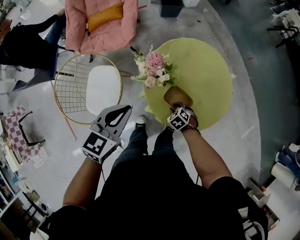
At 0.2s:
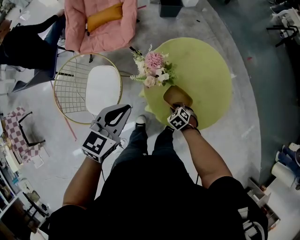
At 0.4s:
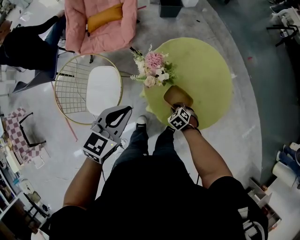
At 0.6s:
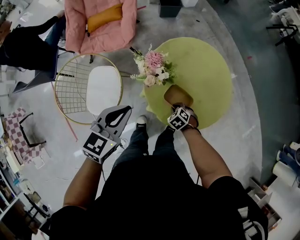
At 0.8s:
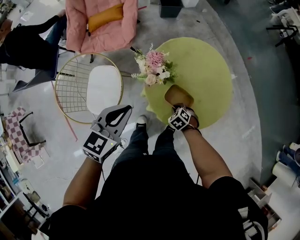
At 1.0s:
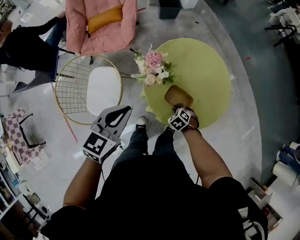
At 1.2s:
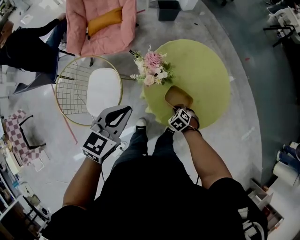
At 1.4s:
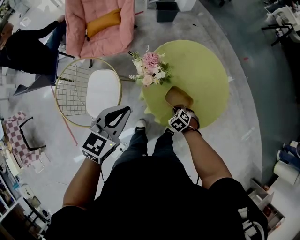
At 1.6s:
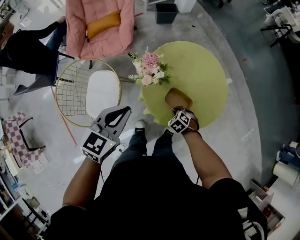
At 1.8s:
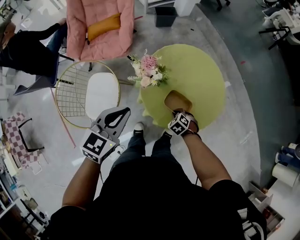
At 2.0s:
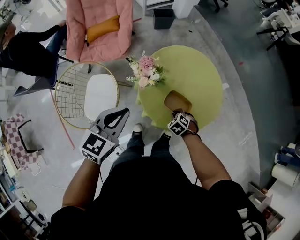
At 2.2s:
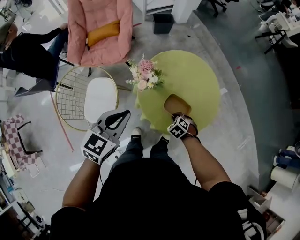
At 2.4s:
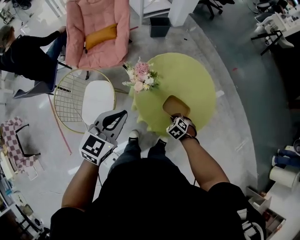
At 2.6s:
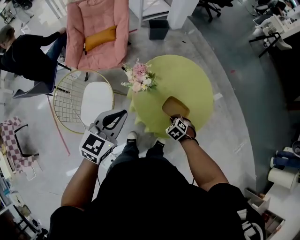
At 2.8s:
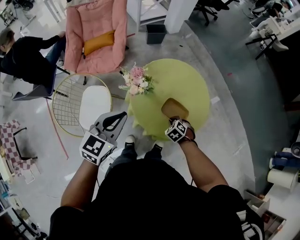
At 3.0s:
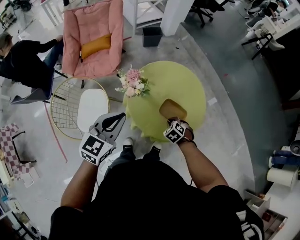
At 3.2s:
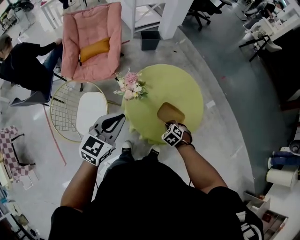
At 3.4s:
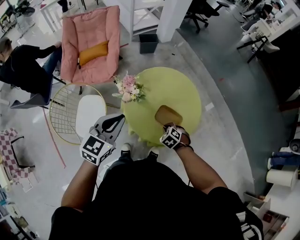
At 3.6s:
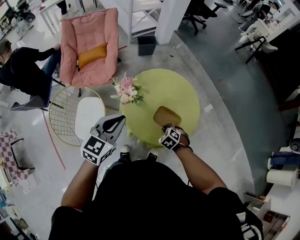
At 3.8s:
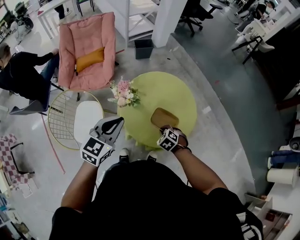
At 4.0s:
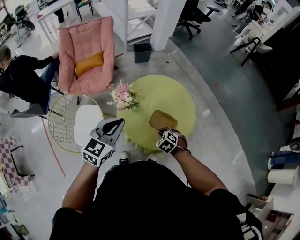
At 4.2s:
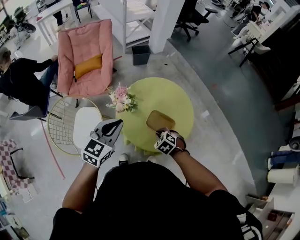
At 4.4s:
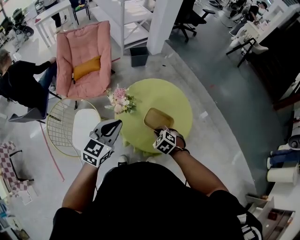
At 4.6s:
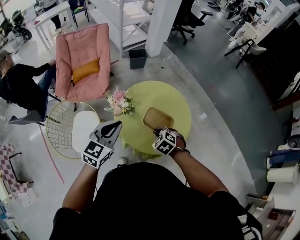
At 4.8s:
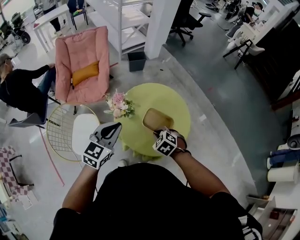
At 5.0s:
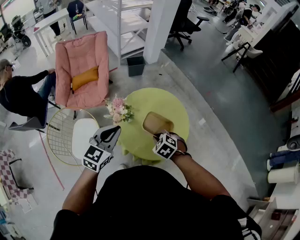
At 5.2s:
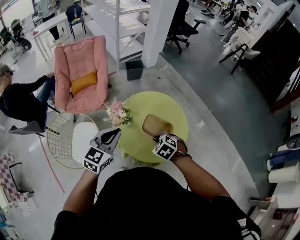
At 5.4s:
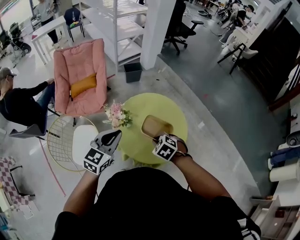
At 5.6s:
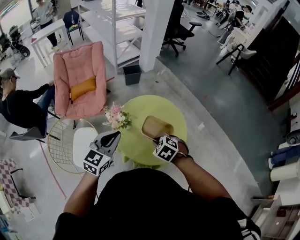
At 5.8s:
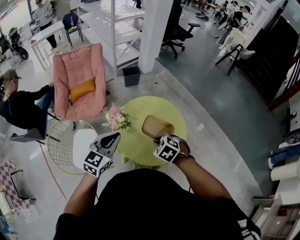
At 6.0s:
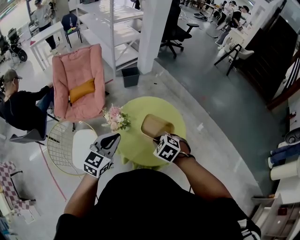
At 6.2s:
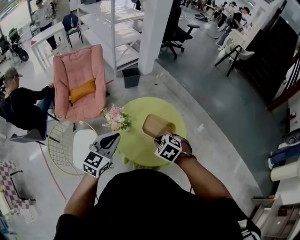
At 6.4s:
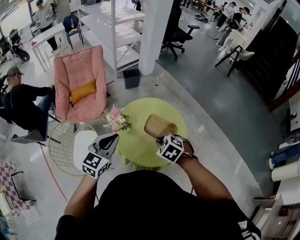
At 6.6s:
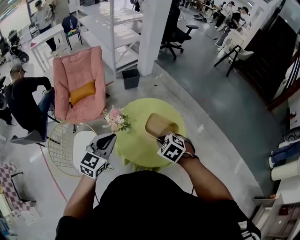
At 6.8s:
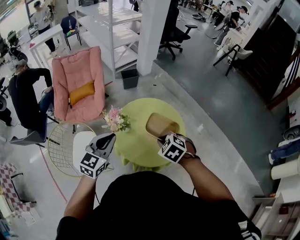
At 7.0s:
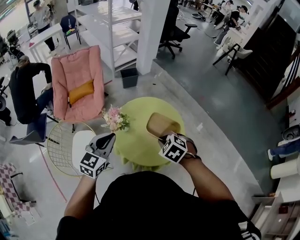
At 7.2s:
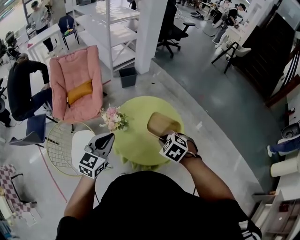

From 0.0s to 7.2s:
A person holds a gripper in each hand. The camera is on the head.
From 0.0s to 1.4s: The grippers make only small movements.
From 1.4s to 2.8s: The two grippers go some 5 cm upward.
From 2.8s to 4.4s: The left gripper shifts by approximately 5 cm. Meanwhile the right gripper is displaced upward by about 10 cm.
From 4.4s to 5.8s: The right gripper moves upward, about 10 cm.
From 5.8s to 7.2s: The right gripper shifts by roughly 5 cm.

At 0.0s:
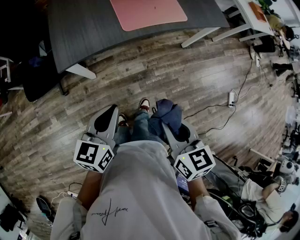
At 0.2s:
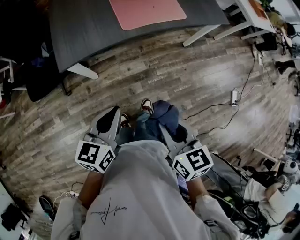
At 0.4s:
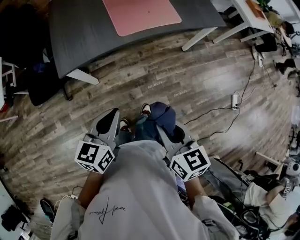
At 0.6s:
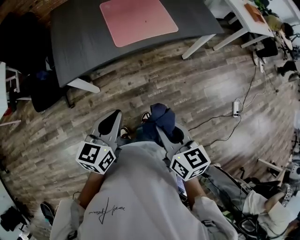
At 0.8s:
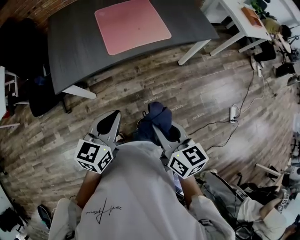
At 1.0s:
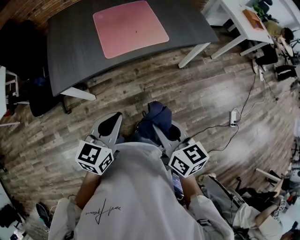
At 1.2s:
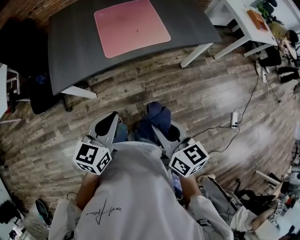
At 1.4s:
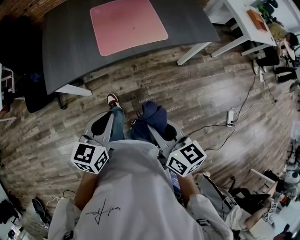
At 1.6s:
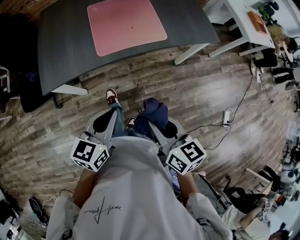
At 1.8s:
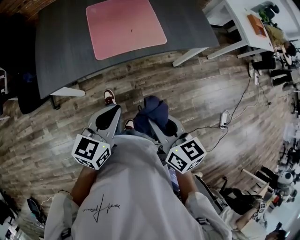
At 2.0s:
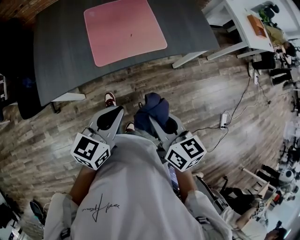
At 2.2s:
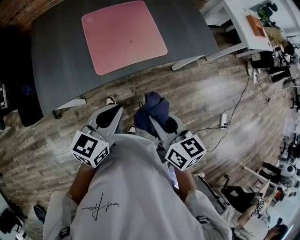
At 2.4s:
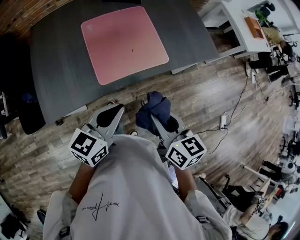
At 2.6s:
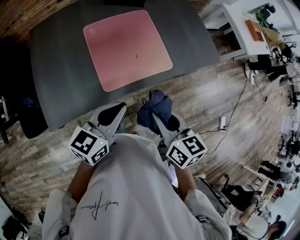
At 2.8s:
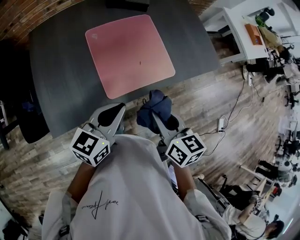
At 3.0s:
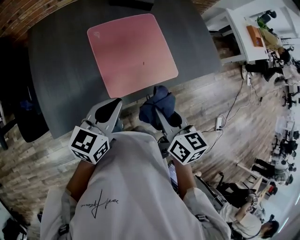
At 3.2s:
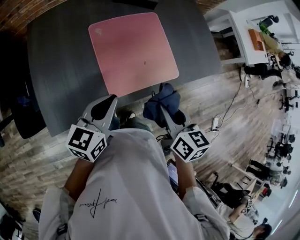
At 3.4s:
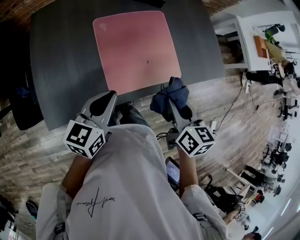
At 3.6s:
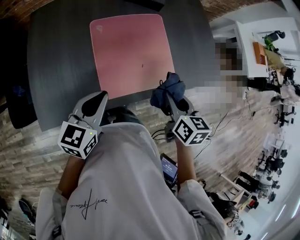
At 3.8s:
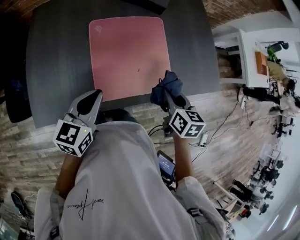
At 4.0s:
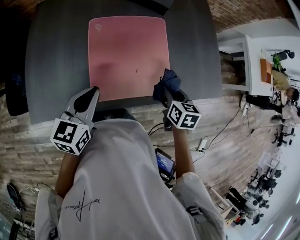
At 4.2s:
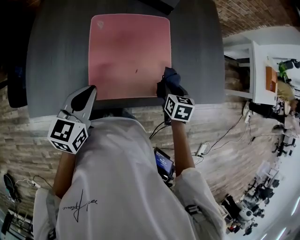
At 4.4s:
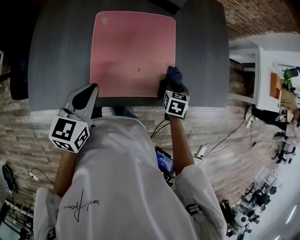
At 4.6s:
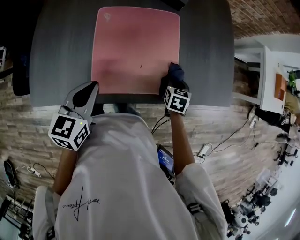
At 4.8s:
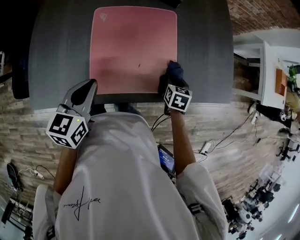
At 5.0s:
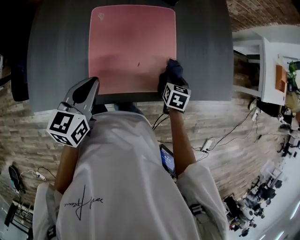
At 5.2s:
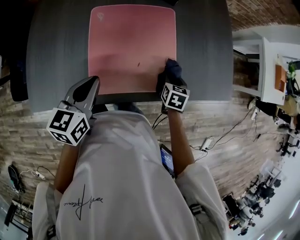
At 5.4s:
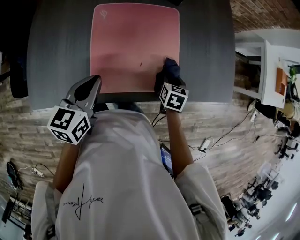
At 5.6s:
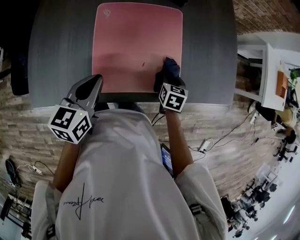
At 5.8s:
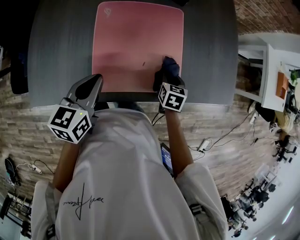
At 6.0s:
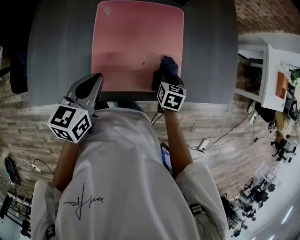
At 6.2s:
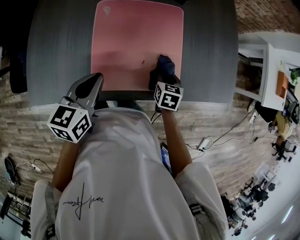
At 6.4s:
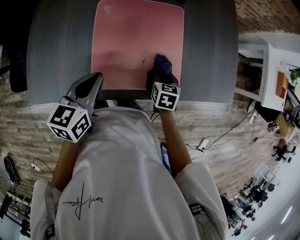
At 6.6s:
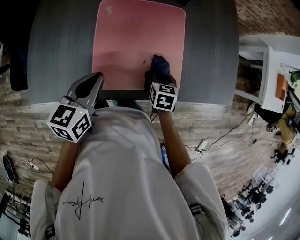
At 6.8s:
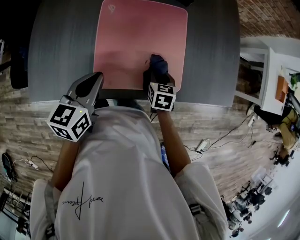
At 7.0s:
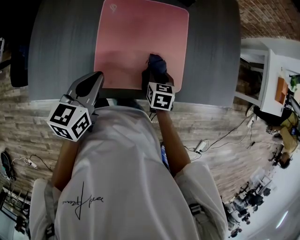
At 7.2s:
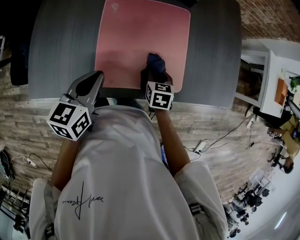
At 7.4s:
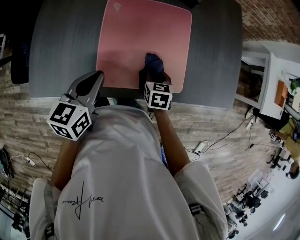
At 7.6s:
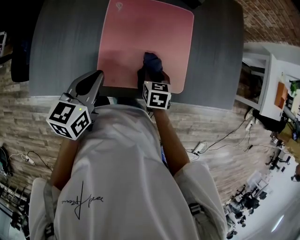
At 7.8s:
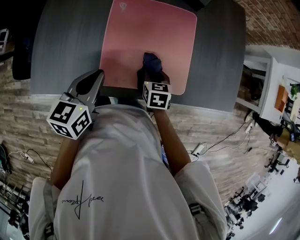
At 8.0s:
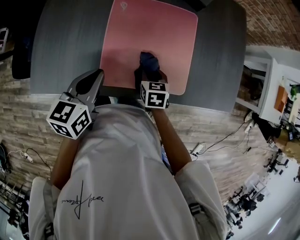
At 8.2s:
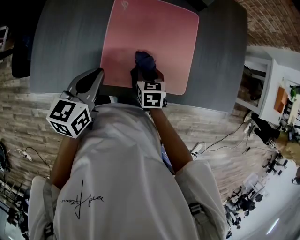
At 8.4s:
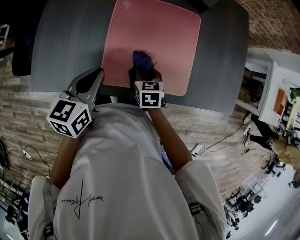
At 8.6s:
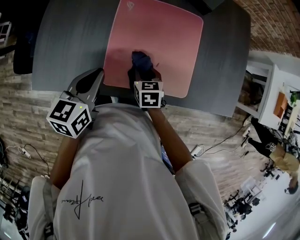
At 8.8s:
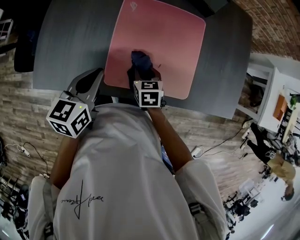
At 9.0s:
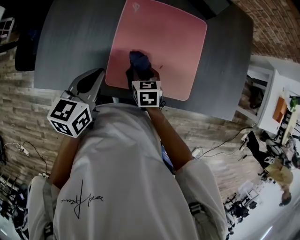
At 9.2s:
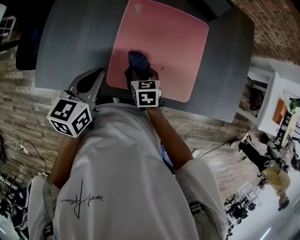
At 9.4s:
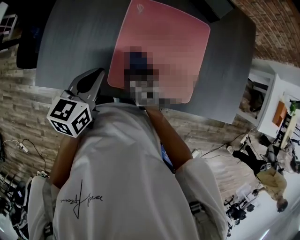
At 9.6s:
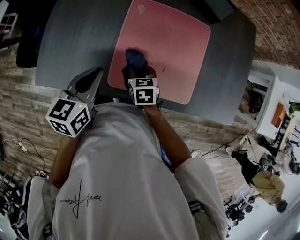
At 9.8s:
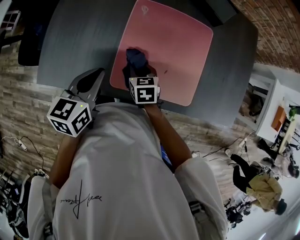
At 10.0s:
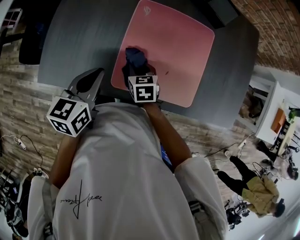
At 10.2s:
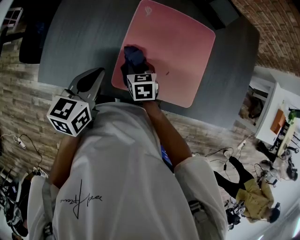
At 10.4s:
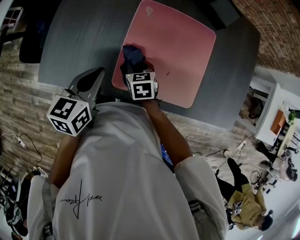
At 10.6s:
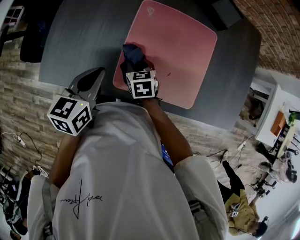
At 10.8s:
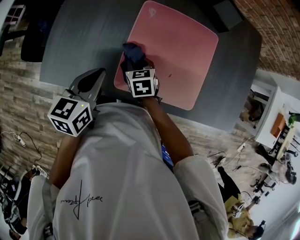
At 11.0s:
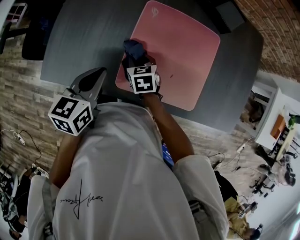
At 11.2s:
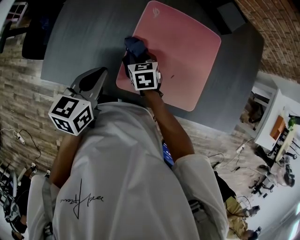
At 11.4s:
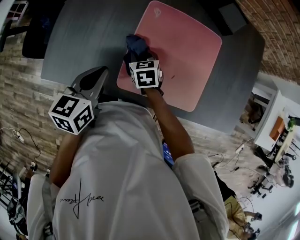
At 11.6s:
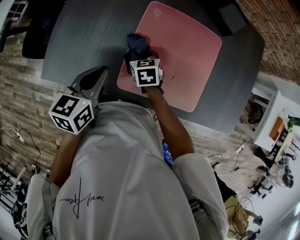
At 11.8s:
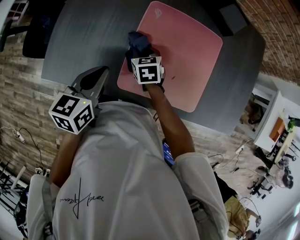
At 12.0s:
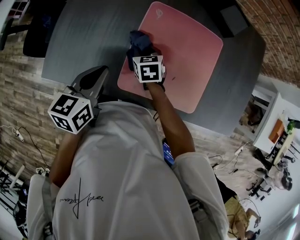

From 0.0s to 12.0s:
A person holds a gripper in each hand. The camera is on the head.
From 0.0s to 1.6s: The two grippers go approximately 20 cm to the right and forward.
From 1.6s to 3.0s: Both grippers move forward and to the left, roughly 30 cm.
From 3.0s to 4.4s: The right gripper travels downward, forward and to the right by roughly 35 cm, and changes its angle by approximately 40 degrees. Meanwhile the left gripper heads forward and downward, covering roughly 10 cm, and swivels approximately 30 degrees.
From 4.4s to 6.0s: The right gripper is displaced to the left by roughly 5 cm.
From 6.0s to 7.6s: The right gripper moves to the left, roughly 10 cm.
From 7.6s to 9.0s: The right gripper travels to the left by approximately 10 cm.
From 9.0s to 10.4s: The right gripper travels to the left by about 5 cm.
From 10.4s to 12.0s: The right gripper goes approximately 5 cm forward.

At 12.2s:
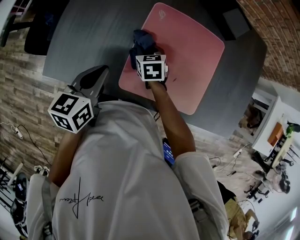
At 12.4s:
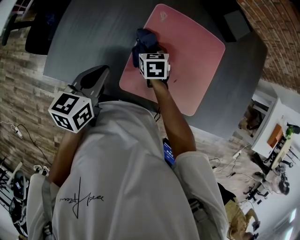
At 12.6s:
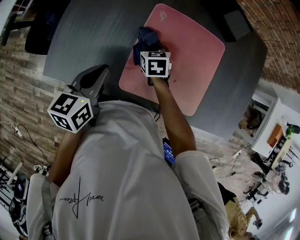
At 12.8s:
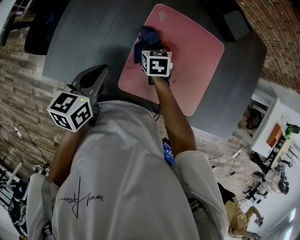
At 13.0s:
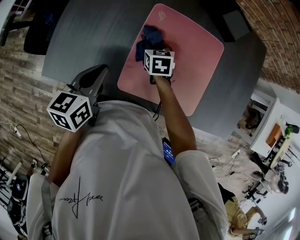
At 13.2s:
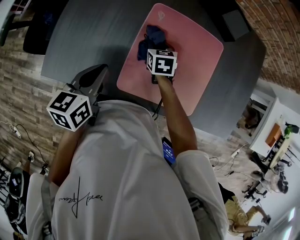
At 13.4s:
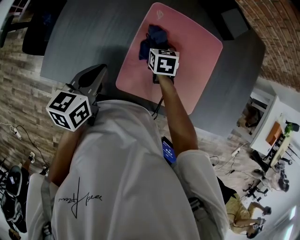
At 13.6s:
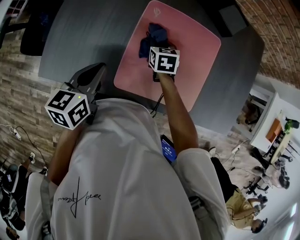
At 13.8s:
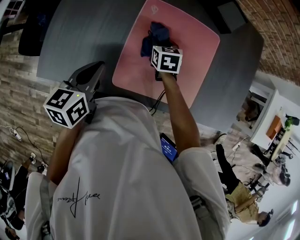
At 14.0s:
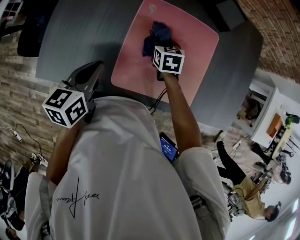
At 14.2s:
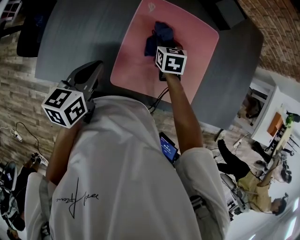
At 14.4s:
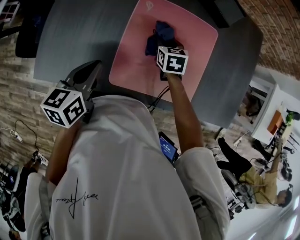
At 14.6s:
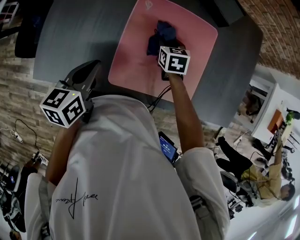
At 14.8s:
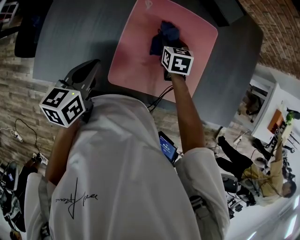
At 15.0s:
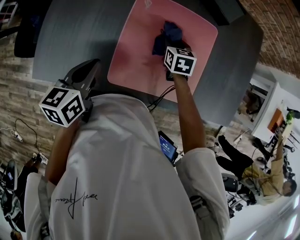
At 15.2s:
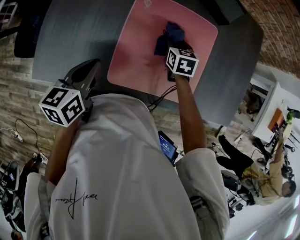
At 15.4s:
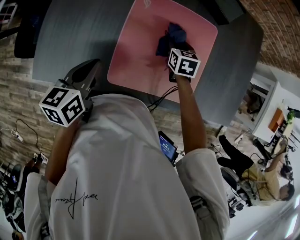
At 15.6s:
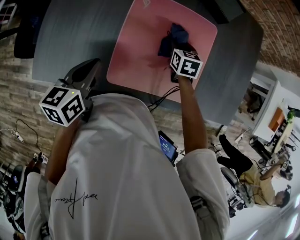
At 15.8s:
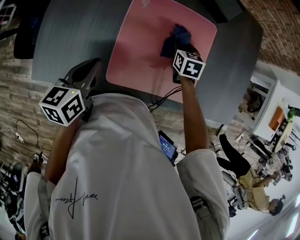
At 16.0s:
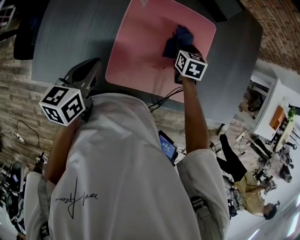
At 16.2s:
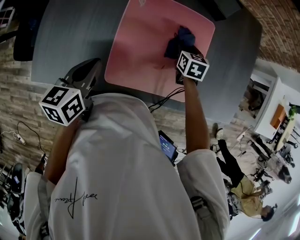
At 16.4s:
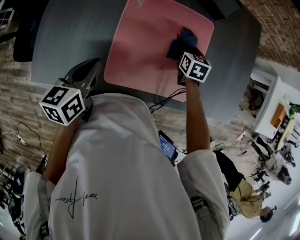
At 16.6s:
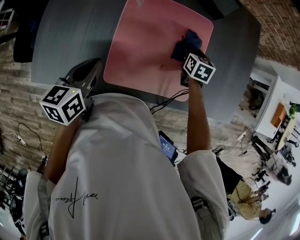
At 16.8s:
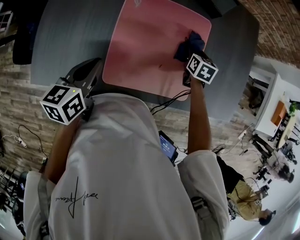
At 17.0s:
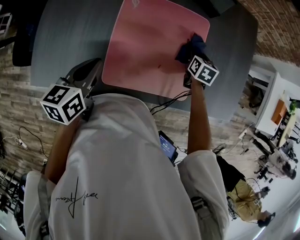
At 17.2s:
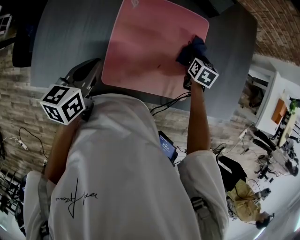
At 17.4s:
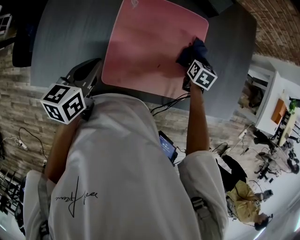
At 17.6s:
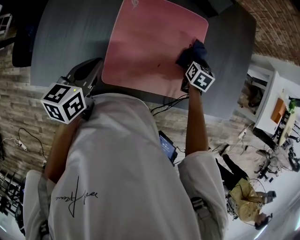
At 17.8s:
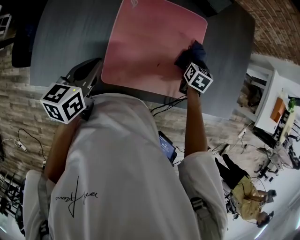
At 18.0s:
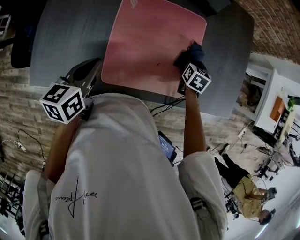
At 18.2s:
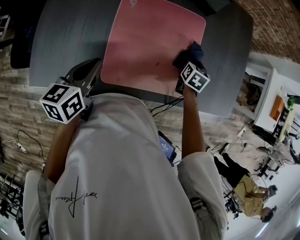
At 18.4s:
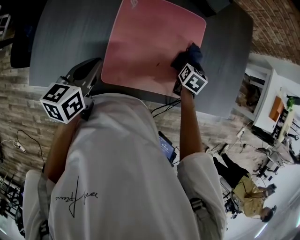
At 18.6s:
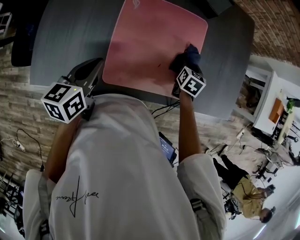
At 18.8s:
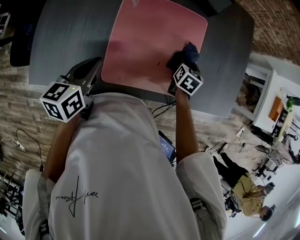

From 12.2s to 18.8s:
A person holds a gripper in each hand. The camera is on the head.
From 12.2s to 13.8s: The right gripper travels to the right by roughly 10 cm.
From 13.8s to 15.4s: The right gripper is displaced to the right by approximately 10 cm.
From 15.4s to 17.2s: The right gripper goes some 15 cm to the right.
From 17.2s to 18.8s: The right gripper shifts approximately 5 cm backward.
